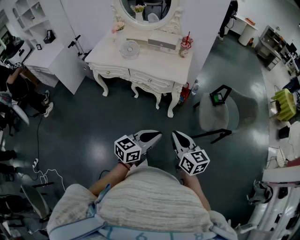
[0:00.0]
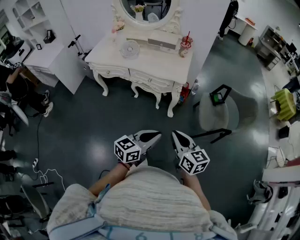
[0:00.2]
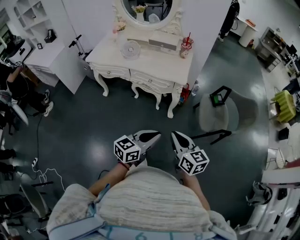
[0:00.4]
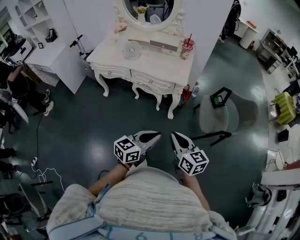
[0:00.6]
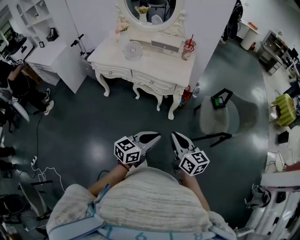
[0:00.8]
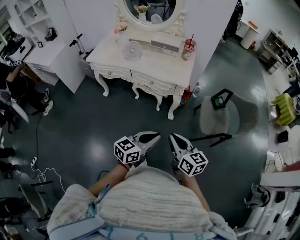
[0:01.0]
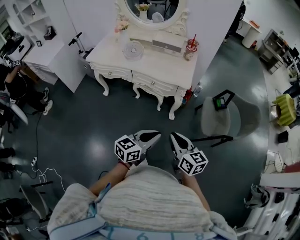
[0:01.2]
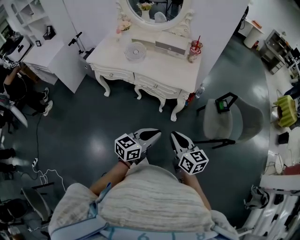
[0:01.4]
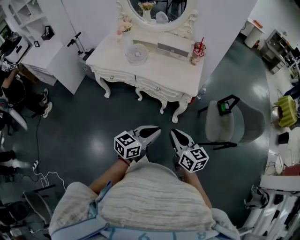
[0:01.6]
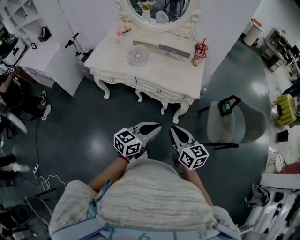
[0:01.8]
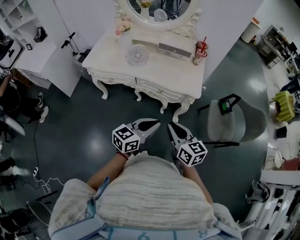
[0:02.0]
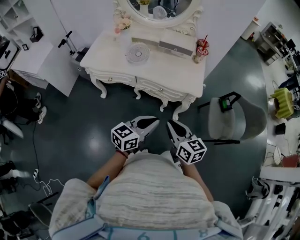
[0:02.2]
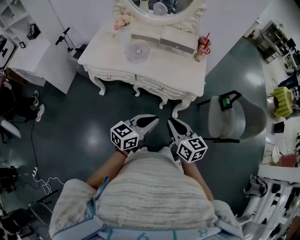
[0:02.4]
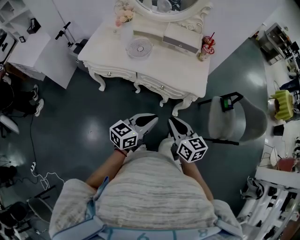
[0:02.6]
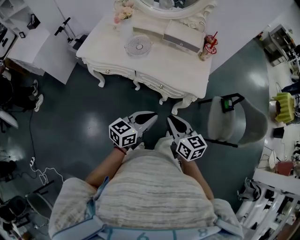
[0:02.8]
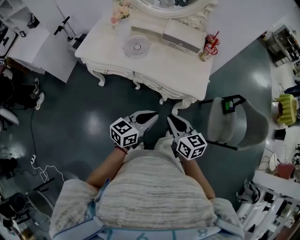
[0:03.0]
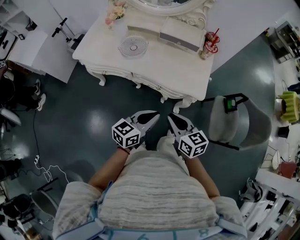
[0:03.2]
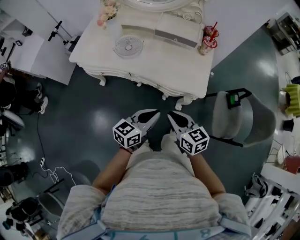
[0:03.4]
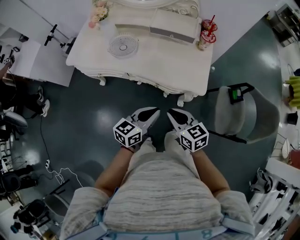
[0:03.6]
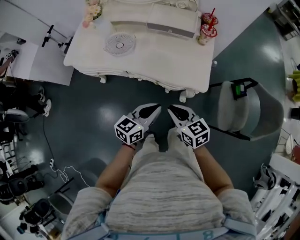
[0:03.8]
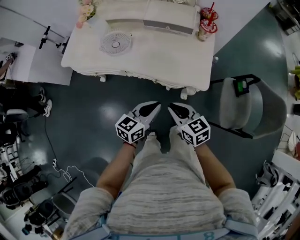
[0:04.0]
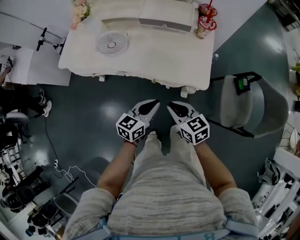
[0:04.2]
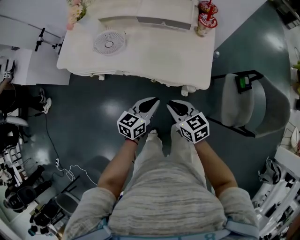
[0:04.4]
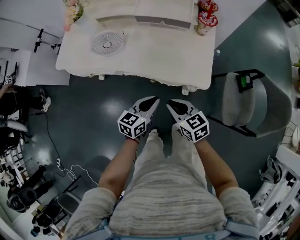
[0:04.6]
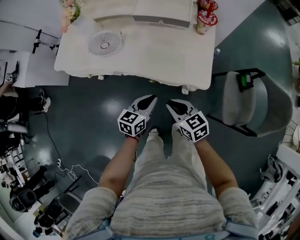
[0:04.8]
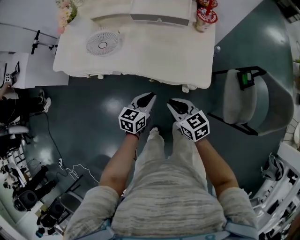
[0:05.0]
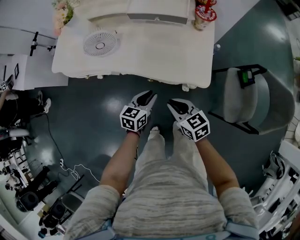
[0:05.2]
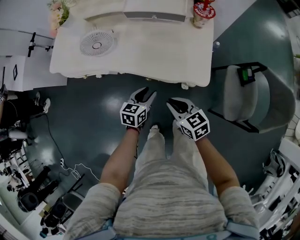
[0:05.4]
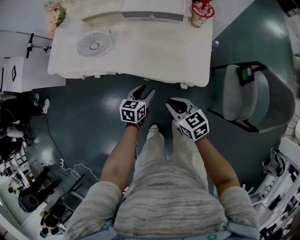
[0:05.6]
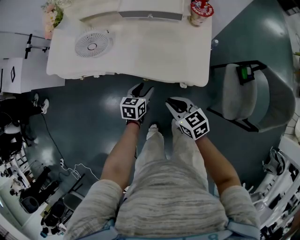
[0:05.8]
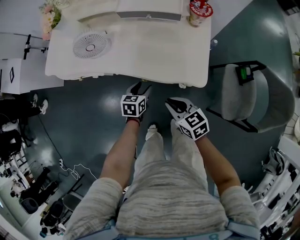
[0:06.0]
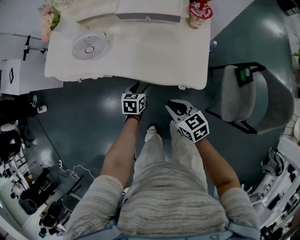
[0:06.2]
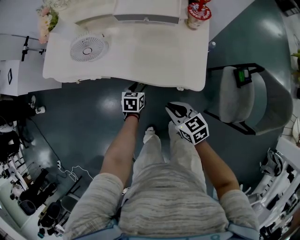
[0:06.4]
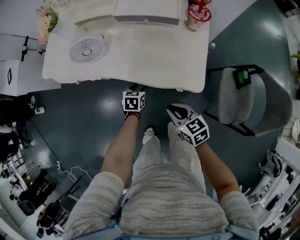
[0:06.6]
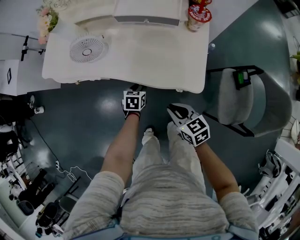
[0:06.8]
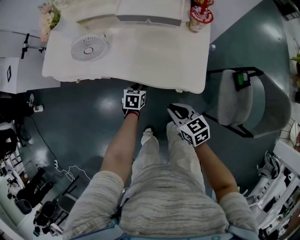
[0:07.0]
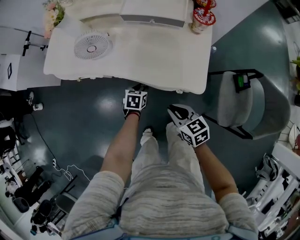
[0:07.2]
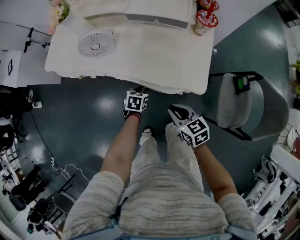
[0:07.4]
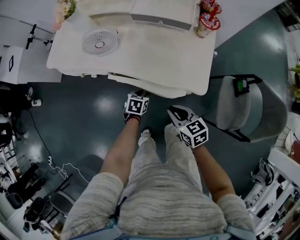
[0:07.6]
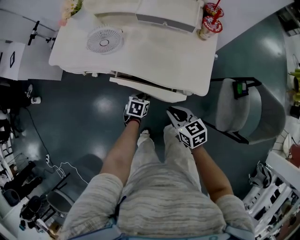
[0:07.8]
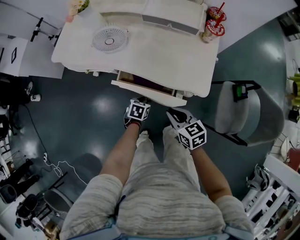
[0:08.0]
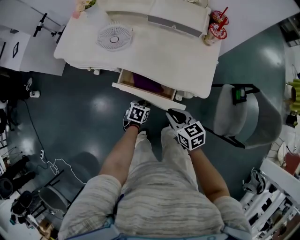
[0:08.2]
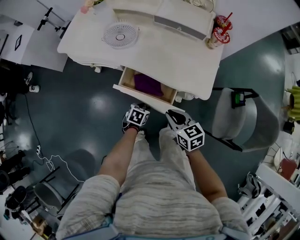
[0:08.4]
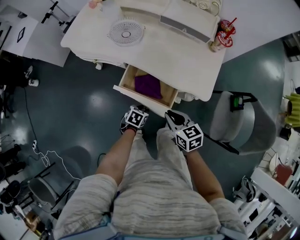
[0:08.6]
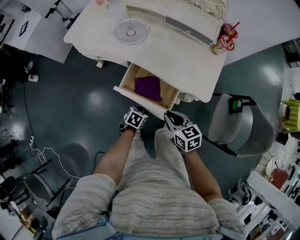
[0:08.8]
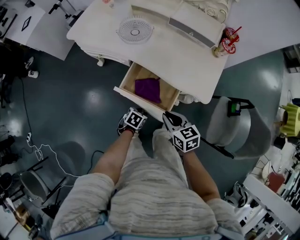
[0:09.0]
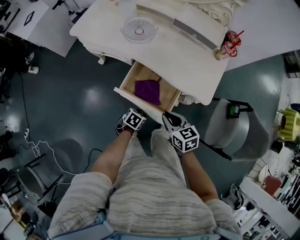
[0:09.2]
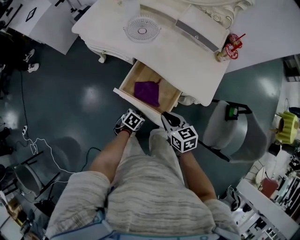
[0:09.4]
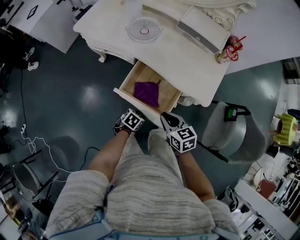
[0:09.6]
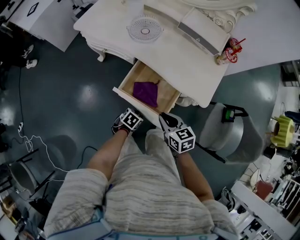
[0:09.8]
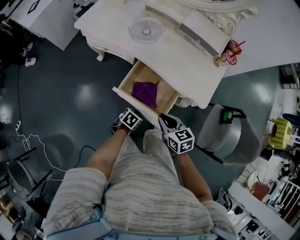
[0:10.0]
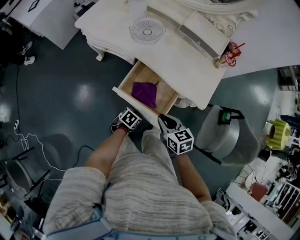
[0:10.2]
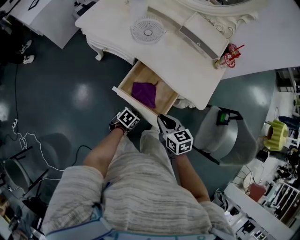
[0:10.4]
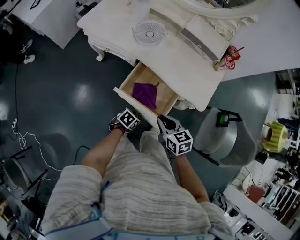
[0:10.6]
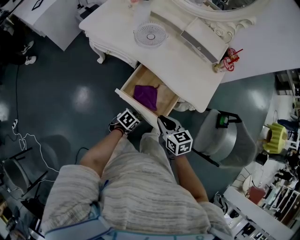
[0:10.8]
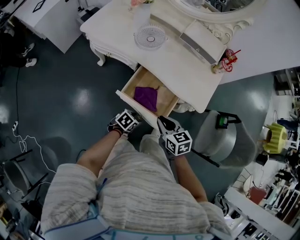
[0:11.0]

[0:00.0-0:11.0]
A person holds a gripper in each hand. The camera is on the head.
0:00.0 to 0:01.6: The grippers both shift forward and to the left by roughly 15 cm.
0:01.6 to 0:03.2: The two grippers go about 20 cm forward.
0:03.2 to 0:04.8: The two grippers go about 15 cm downward and forward.
0:04.8 to 0:06.2: The left gripper travels downward and forward by approximately 15 cm, rotates some 20 degrees, and opens up.
0:06.2 to 0:07.8: The left gripper is displaced backward by some 5 cm.
0:07.8 to 0:09.4: The left gripper heads backward, covering about 15 cm. Meanwhile the right gripper moves to the left and backward, approximately 10 cm.
0:09.4 to 0:11.0: The left gripper goes about 5 cm upward, and opens up.

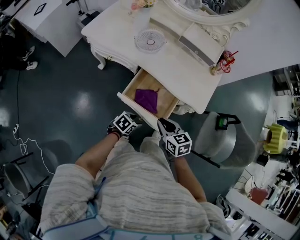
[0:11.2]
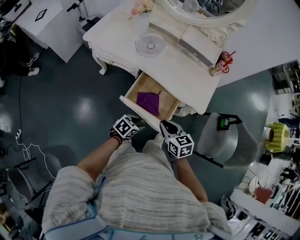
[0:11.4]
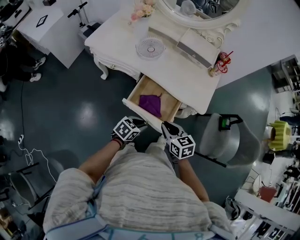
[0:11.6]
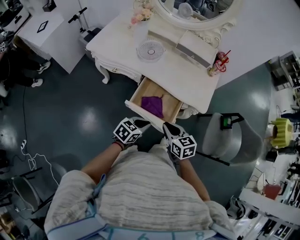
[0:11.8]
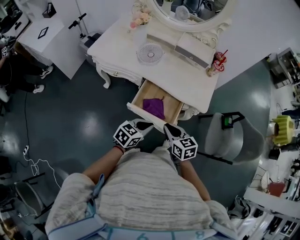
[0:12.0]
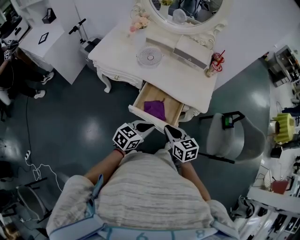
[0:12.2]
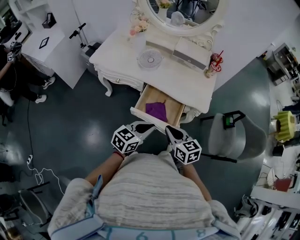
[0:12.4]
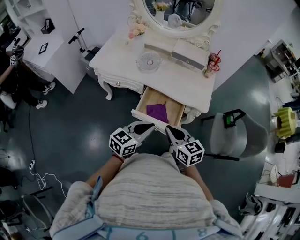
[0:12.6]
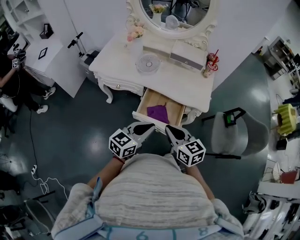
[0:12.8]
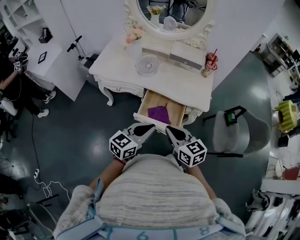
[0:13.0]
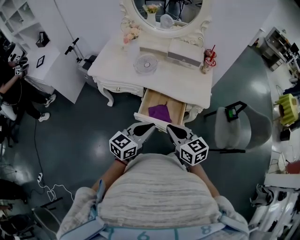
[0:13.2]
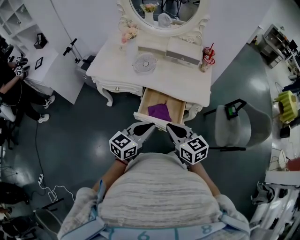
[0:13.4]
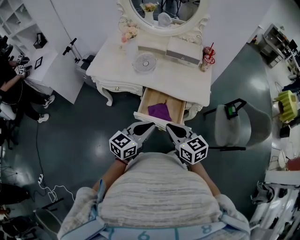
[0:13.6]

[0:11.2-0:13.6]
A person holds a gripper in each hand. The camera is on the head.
0:11.2 to 0:12.4: The left gripper travels upward by roughly 20 cm, tilts its fingers some 30 degrees upward, and closes. Meanwhile the right gripper goes some 10 cm upward and backward.
0:12.4 to 0:13.6: Both grippers move upward, about 5 cm.

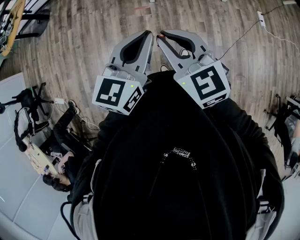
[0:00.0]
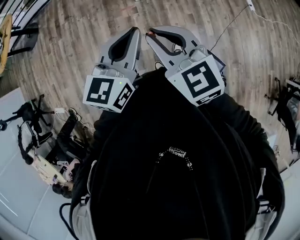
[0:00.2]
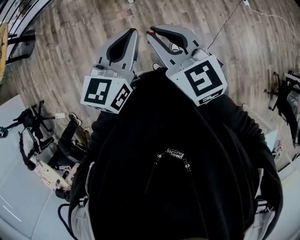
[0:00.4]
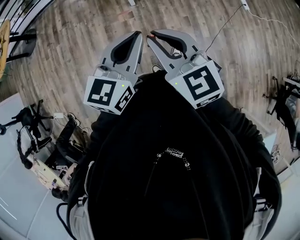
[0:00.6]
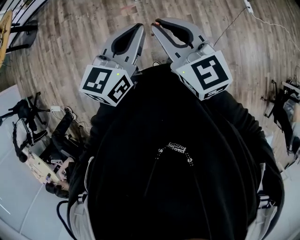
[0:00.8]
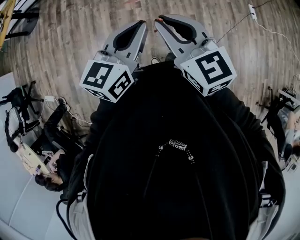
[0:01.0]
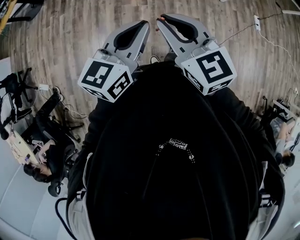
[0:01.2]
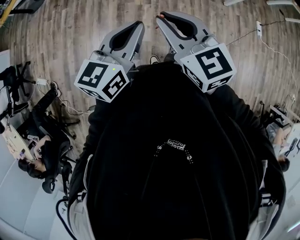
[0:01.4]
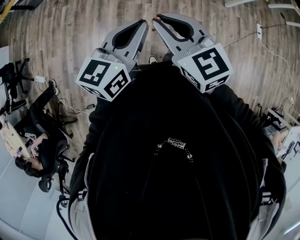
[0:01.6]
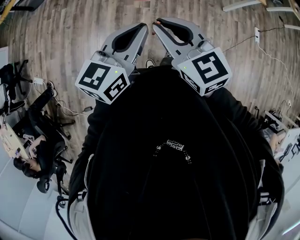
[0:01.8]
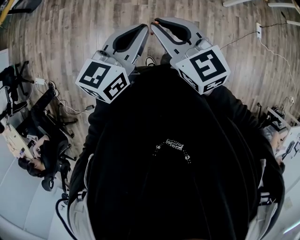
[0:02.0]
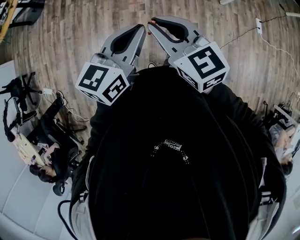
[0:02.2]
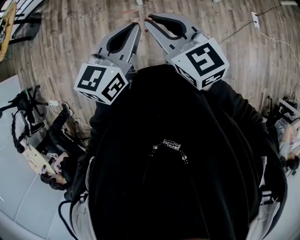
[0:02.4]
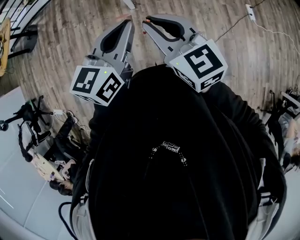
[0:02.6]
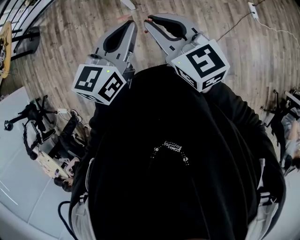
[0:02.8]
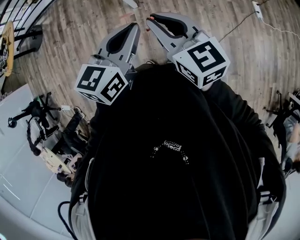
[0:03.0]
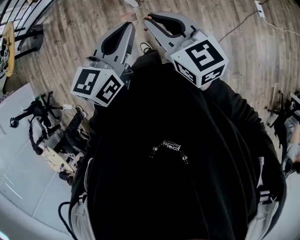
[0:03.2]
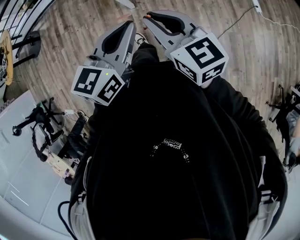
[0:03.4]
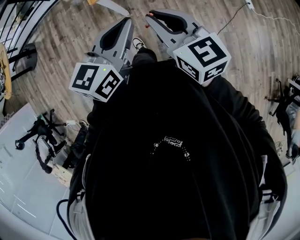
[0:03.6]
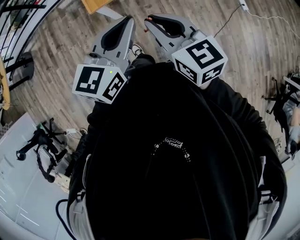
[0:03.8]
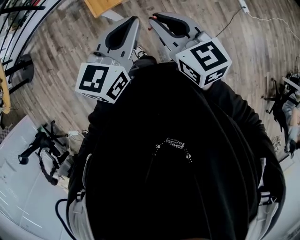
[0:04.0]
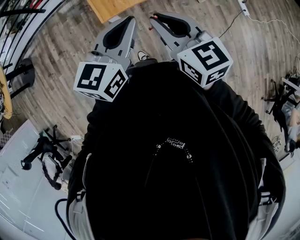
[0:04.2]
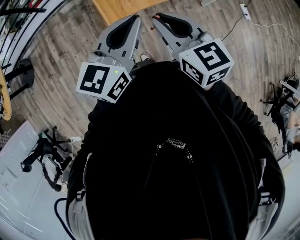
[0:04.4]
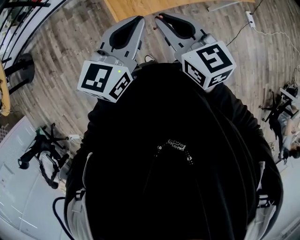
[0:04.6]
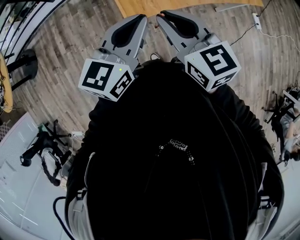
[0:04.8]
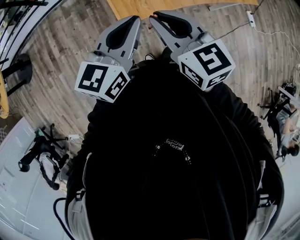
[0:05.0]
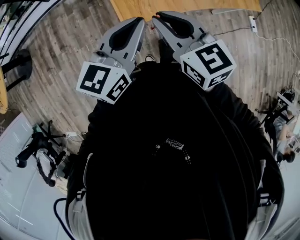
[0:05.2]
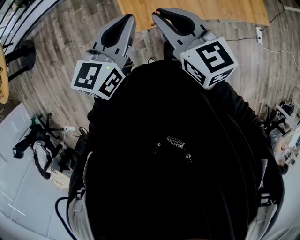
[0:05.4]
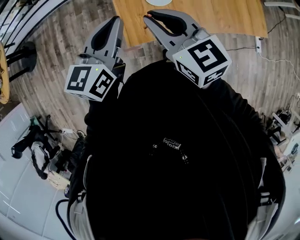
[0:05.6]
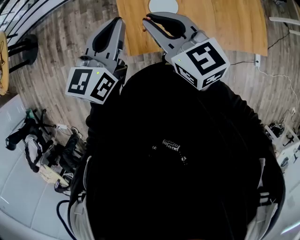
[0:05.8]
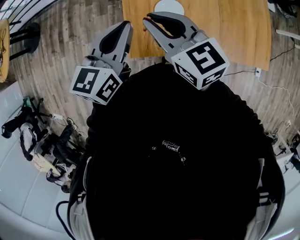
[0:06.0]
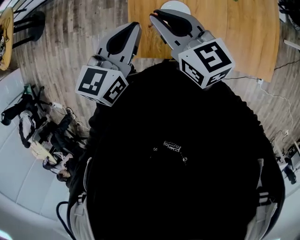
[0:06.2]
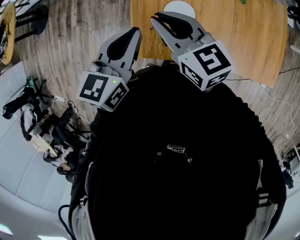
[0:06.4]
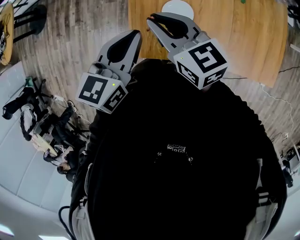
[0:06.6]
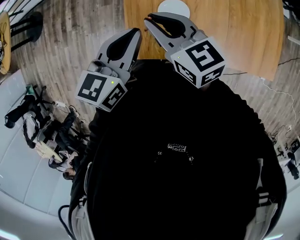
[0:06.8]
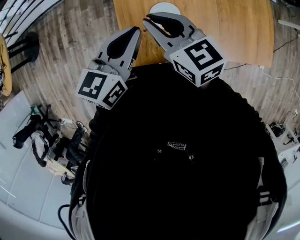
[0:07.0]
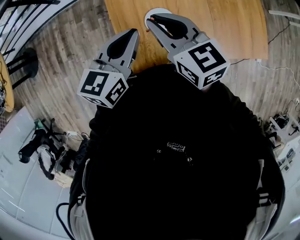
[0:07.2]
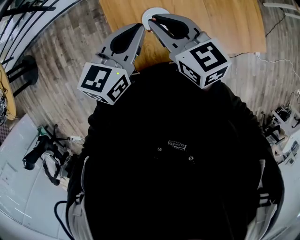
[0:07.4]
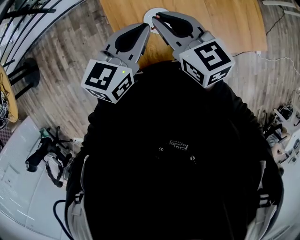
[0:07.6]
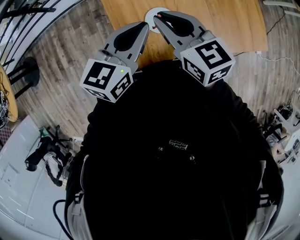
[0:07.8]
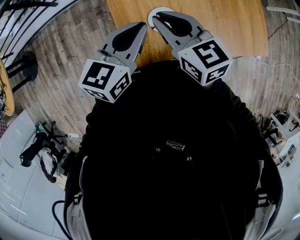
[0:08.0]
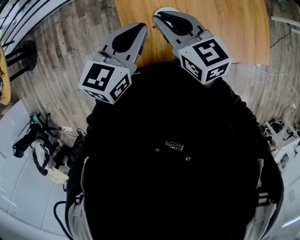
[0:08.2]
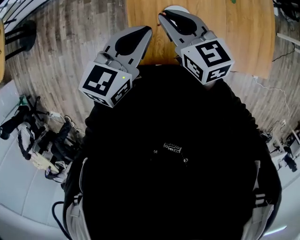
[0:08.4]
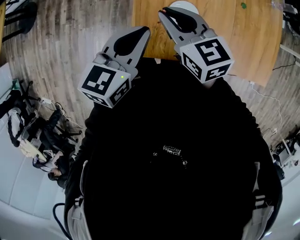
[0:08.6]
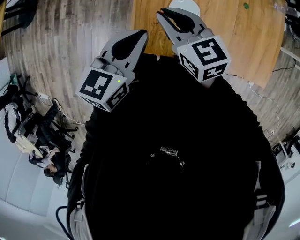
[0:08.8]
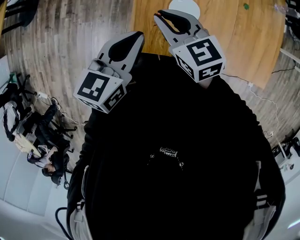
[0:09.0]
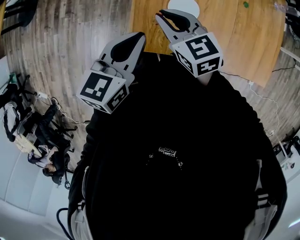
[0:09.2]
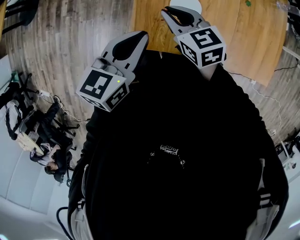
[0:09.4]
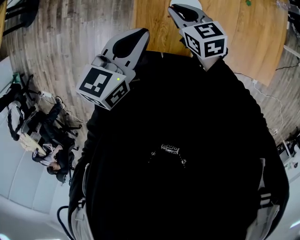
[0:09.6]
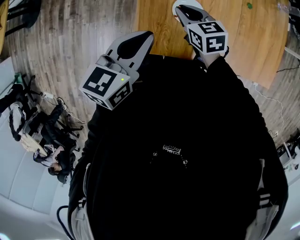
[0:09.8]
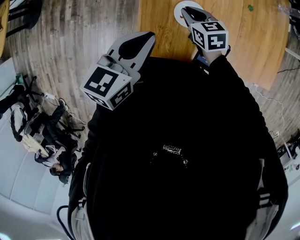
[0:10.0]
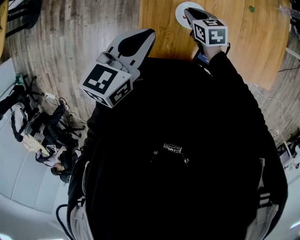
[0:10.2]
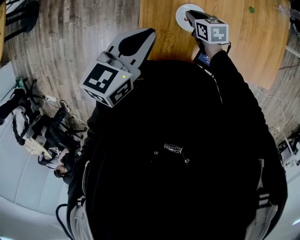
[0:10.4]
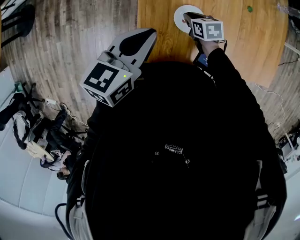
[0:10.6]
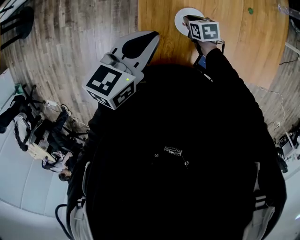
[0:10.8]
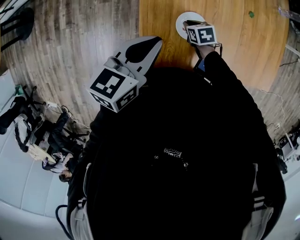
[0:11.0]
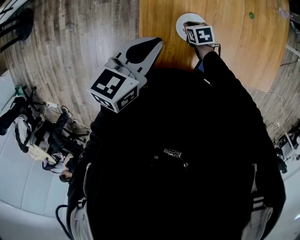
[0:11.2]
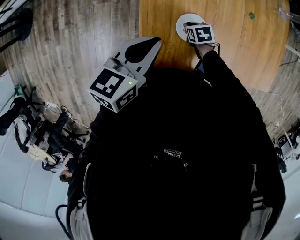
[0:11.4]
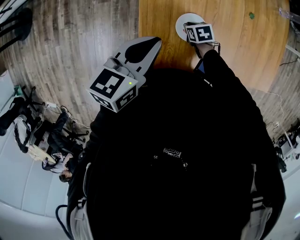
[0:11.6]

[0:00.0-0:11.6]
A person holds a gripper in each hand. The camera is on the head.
0:00.0 to 0:01.4: The left gripper is displaced to the left by roughly 5 cm.
0:01.4 to 0:02.8: The grippers both shift to the right and forward by about 30 cm.
0:02.8 to 0:04.4: Both grippers travel together forward, some 30 cm.
0:04.4 to 0:05.8: The left gripper goes approximately 25 cm forward and to the left, and rotates some 20 degrees; the right gripper shifts some 25 cm forward, and changes its angle by about 20 degrees.
0:05.8 to 0:07.2: The right gripper goes about 10 cm forward. The left gripper moves forward, to the right and downward, roughly 10 cm.
0:07.2 to 0:08.8: The left gripper heads backward, covering about 5 cm, while the right gripper moves downward and to the left, about 10 cm.
0:08.8 to 0:10.2: The right gripper shifts roughly 20 cm downward and to the right, and rotates roughly 20 degrees.
0:10.2 to 0:11.6: The right gripper is displaced downward by about 15 cm, and changes its angle by some 20 degrees. Meanwhile the left gripper is displaced forward by approximately 5 cm.
